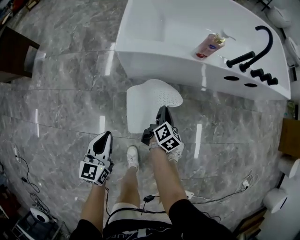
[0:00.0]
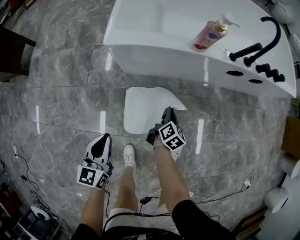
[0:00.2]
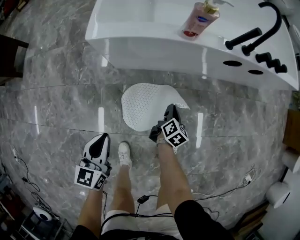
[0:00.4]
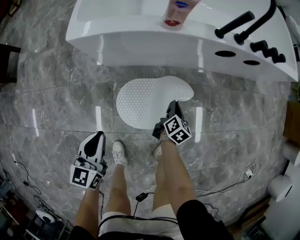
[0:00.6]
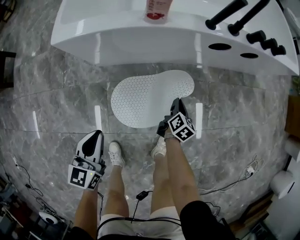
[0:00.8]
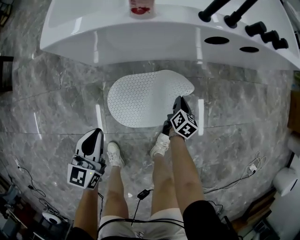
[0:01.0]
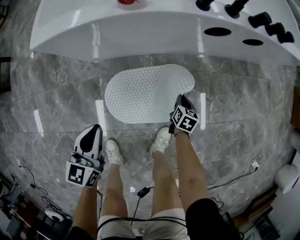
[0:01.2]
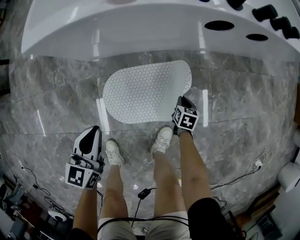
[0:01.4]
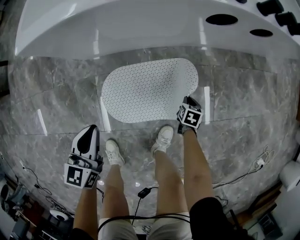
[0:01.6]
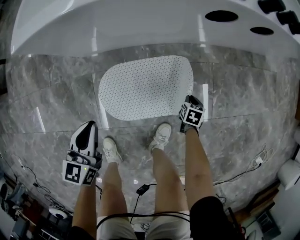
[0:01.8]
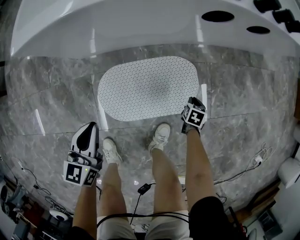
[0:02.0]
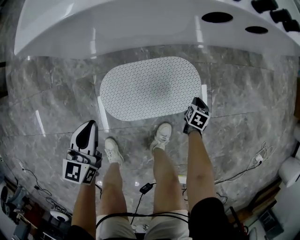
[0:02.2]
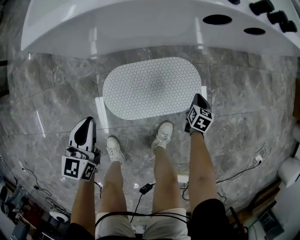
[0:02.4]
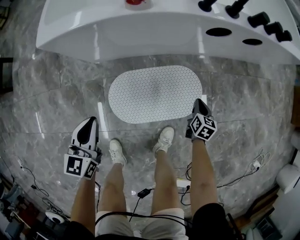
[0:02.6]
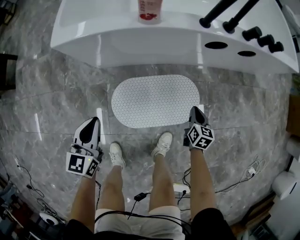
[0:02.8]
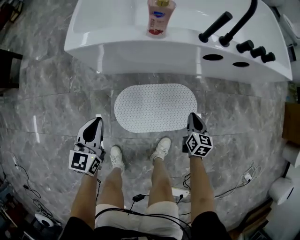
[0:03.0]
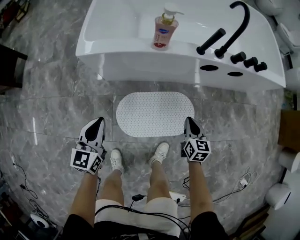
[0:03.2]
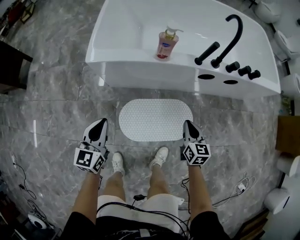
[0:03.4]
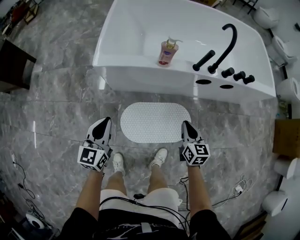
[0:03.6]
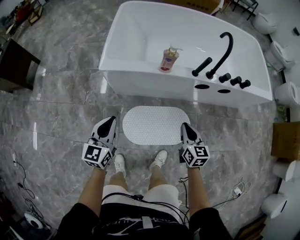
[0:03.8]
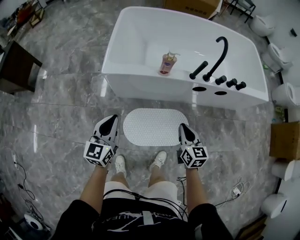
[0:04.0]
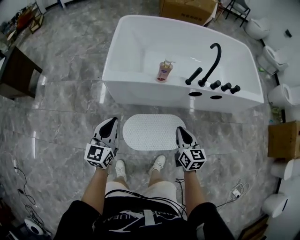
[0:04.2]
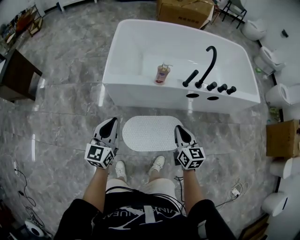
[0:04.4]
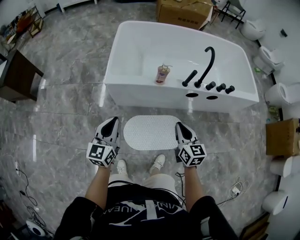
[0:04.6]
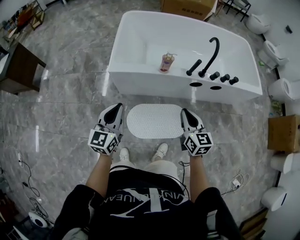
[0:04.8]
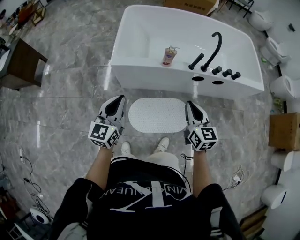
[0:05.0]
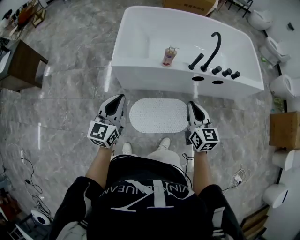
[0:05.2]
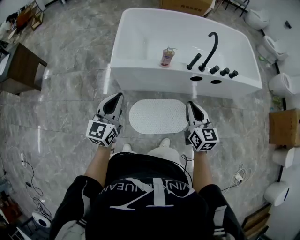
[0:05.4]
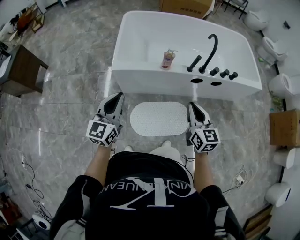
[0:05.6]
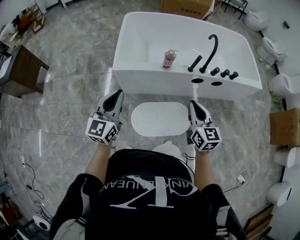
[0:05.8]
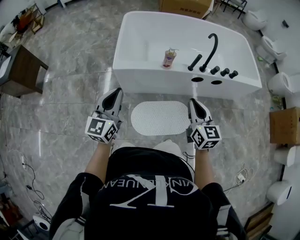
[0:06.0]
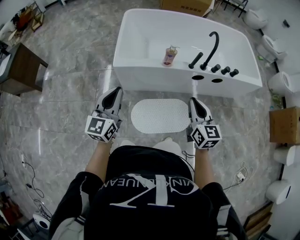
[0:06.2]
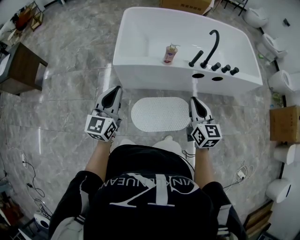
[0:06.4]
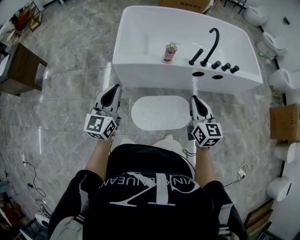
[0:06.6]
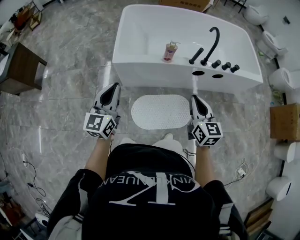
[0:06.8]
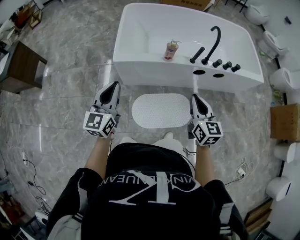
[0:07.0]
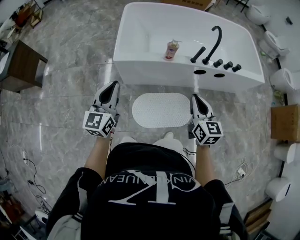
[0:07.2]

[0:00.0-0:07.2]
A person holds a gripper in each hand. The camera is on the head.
0:00.0 to 0:01.4: The left gripper moves to the right, downward and forward, approximately 30 cm. Meanwhile the right gripper travels to the right and downward by some 50 cm, and turns by approximately 40 degrees.
0:01.4 to 0:02.8: The right gripper goes approximately 15 cm upward, while the left gripper shifts some 10 cm to the left and upward.
0:02.8 to 0:04.4: Both grippers travel together upward, about 40 cm. The right gripper changes its angle by about 30 degrees.
0:04.4 to 0:05.8: The grippers both shift upward by roughly 10 cm.
0:05.8 to 0:07.2: The grippers move only a little.

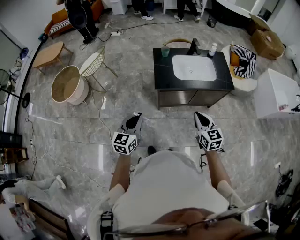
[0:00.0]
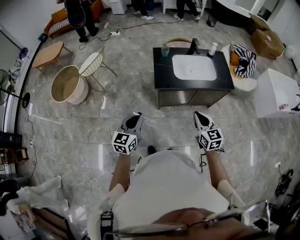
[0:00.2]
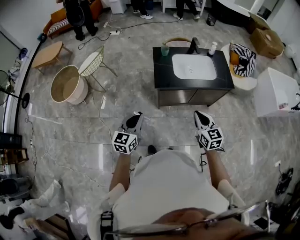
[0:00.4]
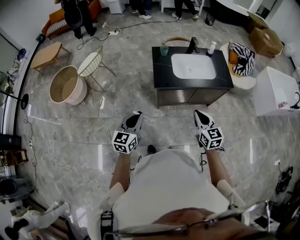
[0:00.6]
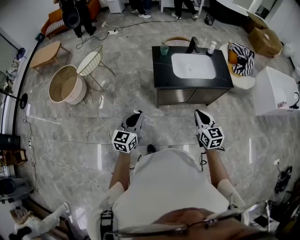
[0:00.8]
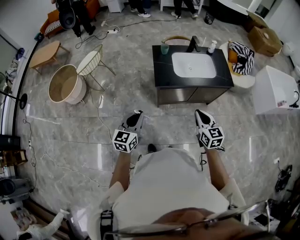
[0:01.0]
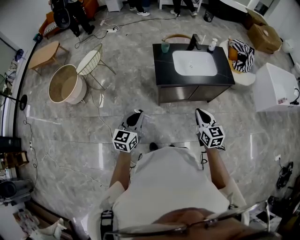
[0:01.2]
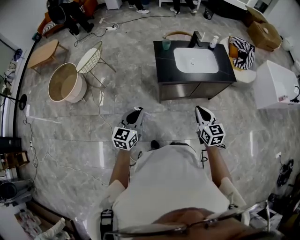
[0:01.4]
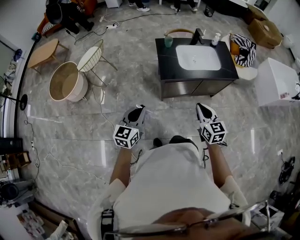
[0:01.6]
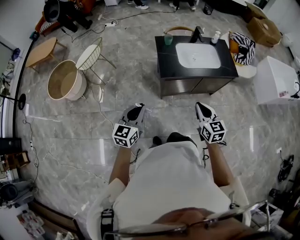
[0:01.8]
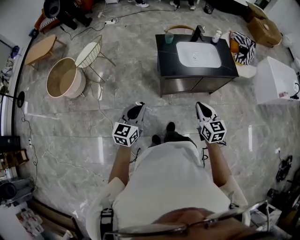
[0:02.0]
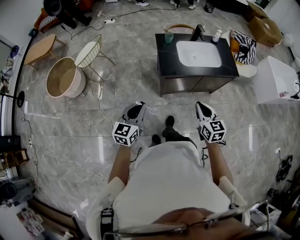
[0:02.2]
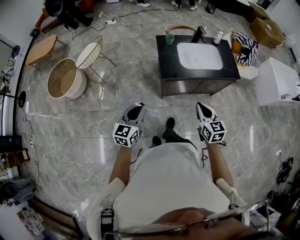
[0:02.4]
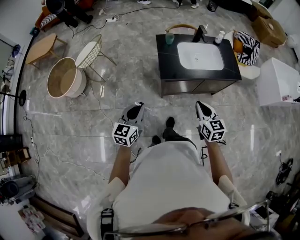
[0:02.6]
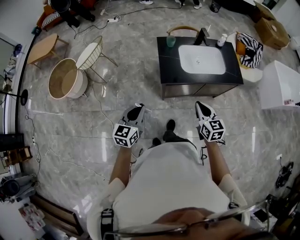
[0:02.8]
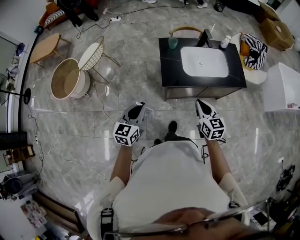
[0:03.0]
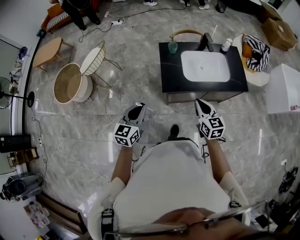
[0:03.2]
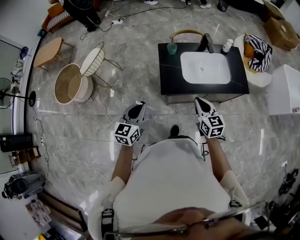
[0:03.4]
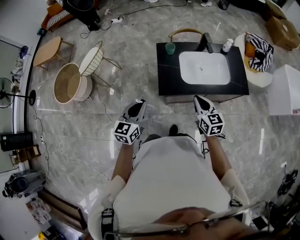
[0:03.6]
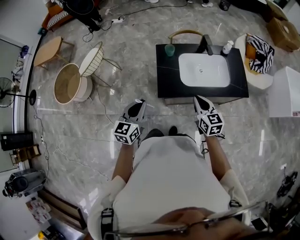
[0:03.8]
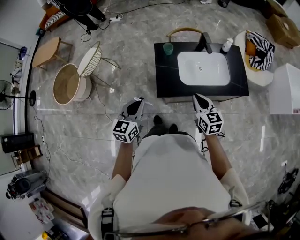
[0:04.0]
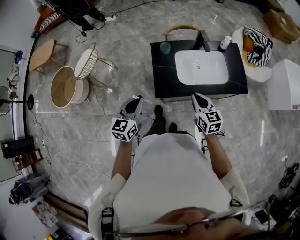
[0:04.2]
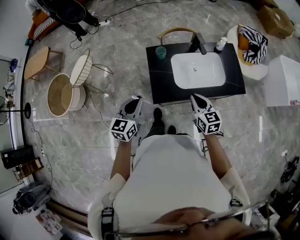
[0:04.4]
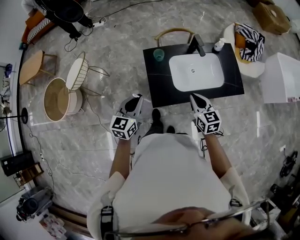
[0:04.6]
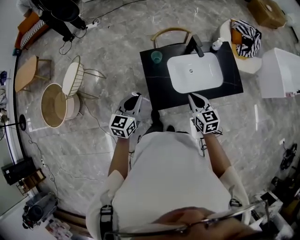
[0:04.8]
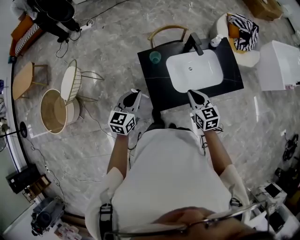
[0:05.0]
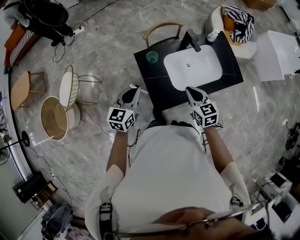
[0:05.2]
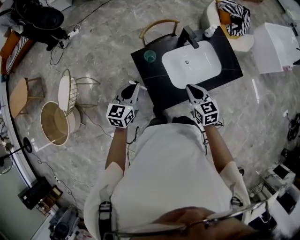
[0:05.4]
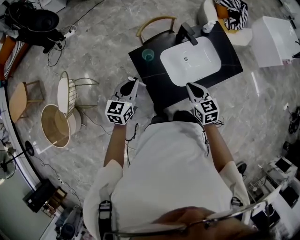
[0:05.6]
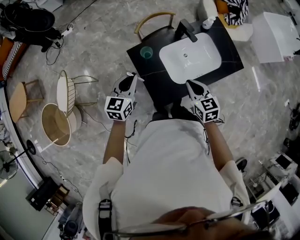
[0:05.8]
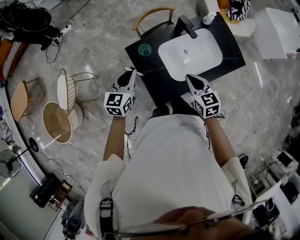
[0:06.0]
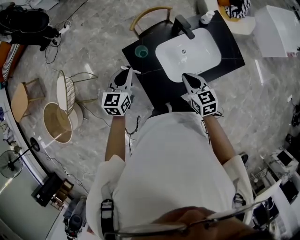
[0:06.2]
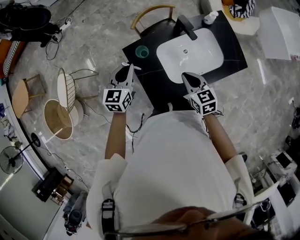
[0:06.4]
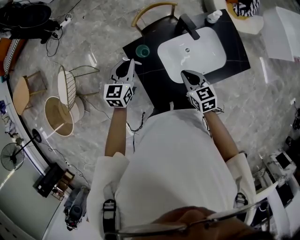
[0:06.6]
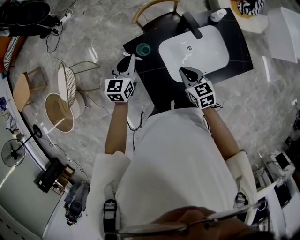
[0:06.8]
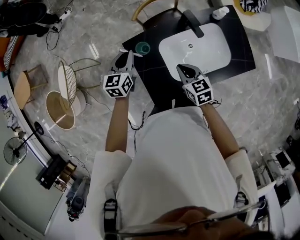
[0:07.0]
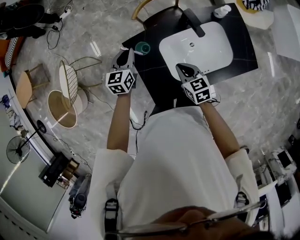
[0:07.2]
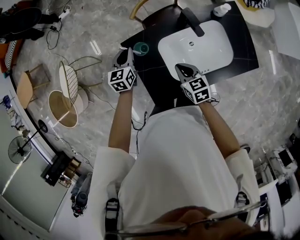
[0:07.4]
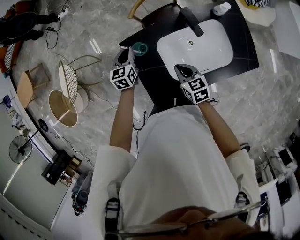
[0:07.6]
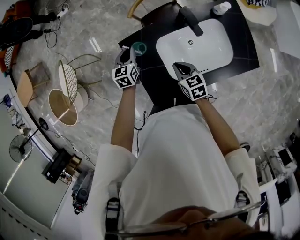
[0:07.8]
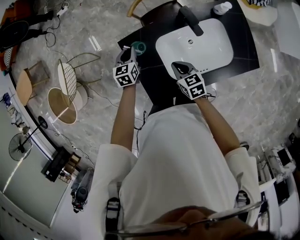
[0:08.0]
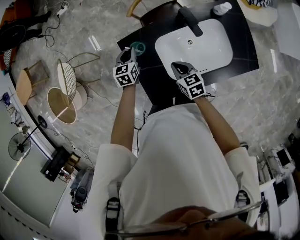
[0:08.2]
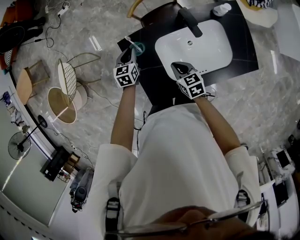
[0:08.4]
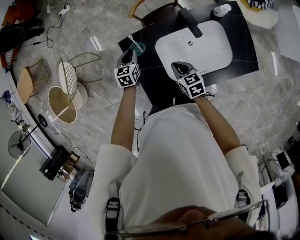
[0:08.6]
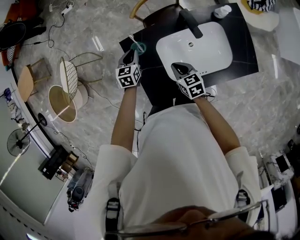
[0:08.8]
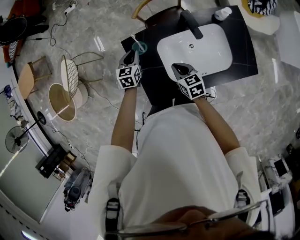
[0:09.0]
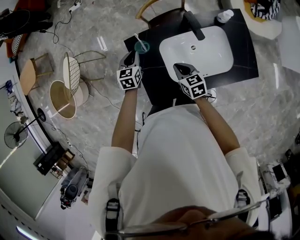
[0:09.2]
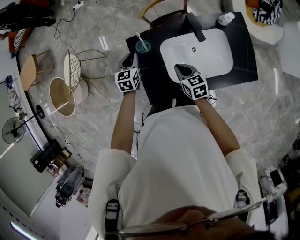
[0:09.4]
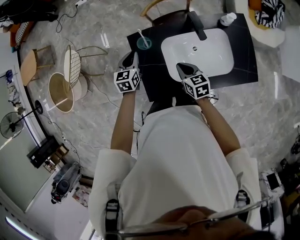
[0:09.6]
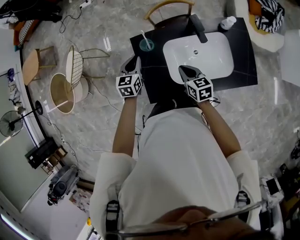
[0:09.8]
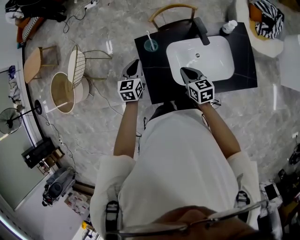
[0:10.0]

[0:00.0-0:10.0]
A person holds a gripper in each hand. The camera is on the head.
0:00.0 to 0:01.4: There are only small adjustments of the grippers.
0:01.4 to 0:02.8: The two grippers go approximately 10 cm forward.
0:02.8 to 0:04.2: The grippers both shift forward by roughly 20 cm.
0:04.2 to 0:05.8: The right gripper moves forward, some 15 cm. Meanwhile the left gripper heads forward, covering about 25 cm, and rotates some 20 degrees.
0:05.8 to 0:07.2: The two grippers go roughly 15 cm forward and downward.
0:07.2 to 0:08.6: The right gripper heads downward, covering some 5 cm. The left gripper goes about 10 cm downward.
0:08.6 to 0:10.0: The left gripper shifts some 15 cm upward and backward; the right gripper moves upward, some 5 cm.

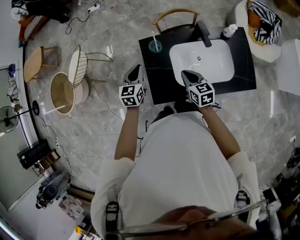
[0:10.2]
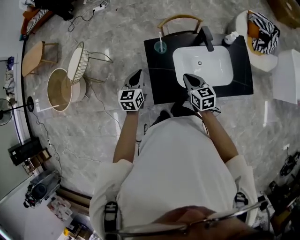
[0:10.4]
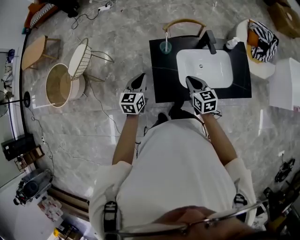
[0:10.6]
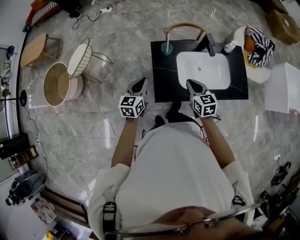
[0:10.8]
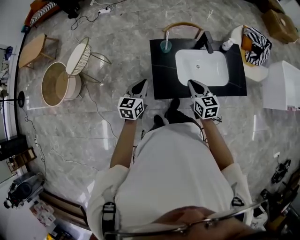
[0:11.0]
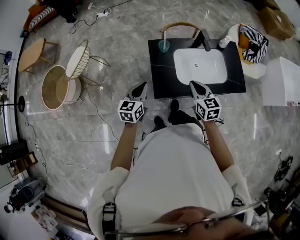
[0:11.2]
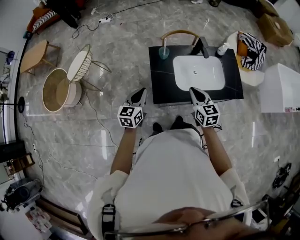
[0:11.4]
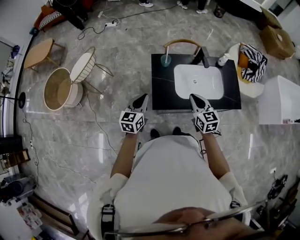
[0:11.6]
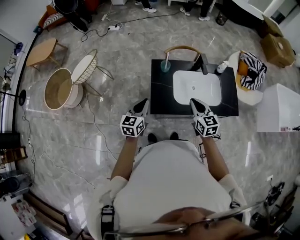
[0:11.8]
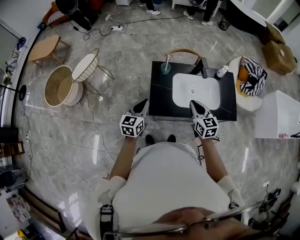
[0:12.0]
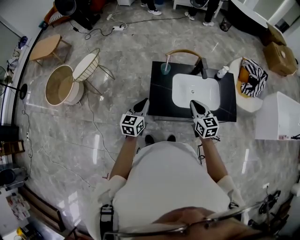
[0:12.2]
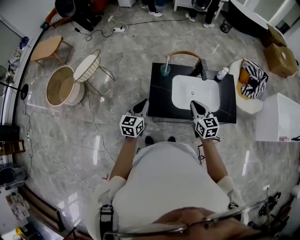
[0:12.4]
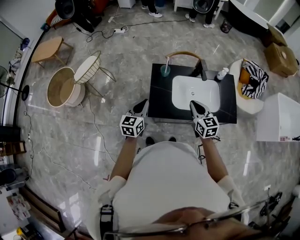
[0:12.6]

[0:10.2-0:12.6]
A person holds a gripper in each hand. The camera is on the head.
0:10.2 to 0:11.4: The right gripper shifts about 15 cm backward and upward; the left gripper travels backward by about 20 cm.
0:11.4 to 0:12.6: The right gripper ends up some 5 cm from where it was. Meanwhile the left gripper changes place by approximately 5 cm.

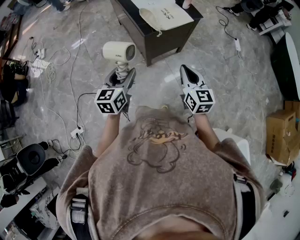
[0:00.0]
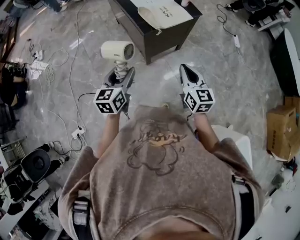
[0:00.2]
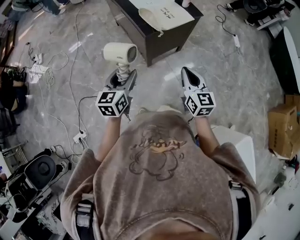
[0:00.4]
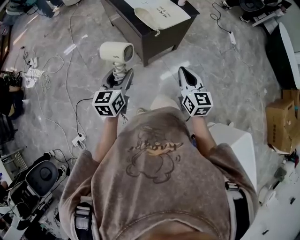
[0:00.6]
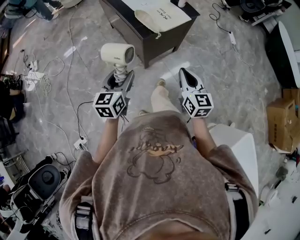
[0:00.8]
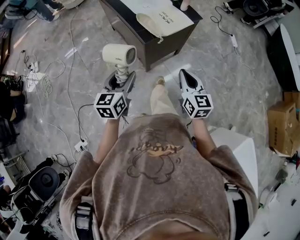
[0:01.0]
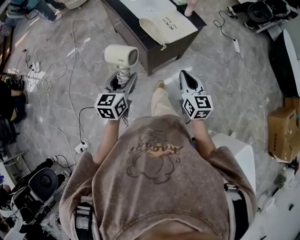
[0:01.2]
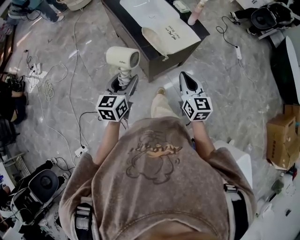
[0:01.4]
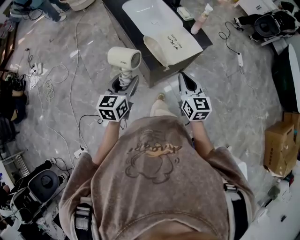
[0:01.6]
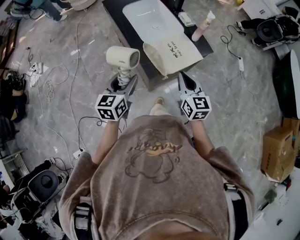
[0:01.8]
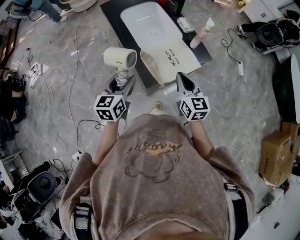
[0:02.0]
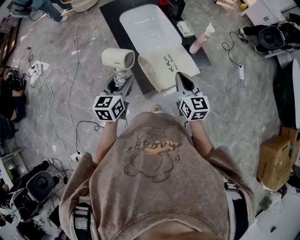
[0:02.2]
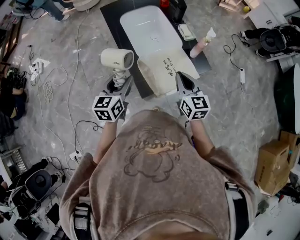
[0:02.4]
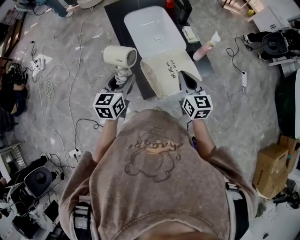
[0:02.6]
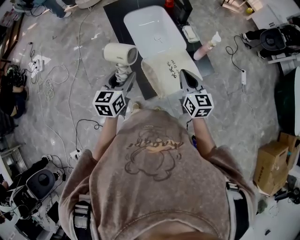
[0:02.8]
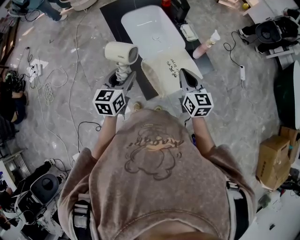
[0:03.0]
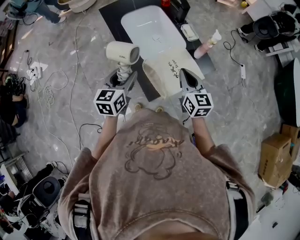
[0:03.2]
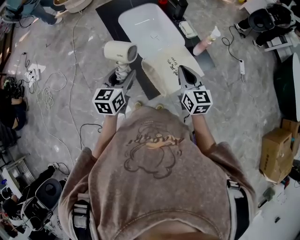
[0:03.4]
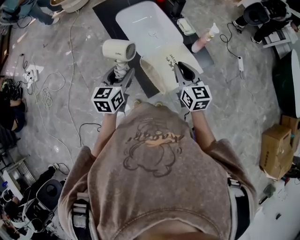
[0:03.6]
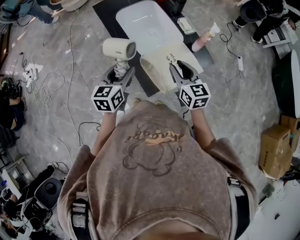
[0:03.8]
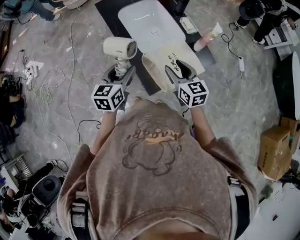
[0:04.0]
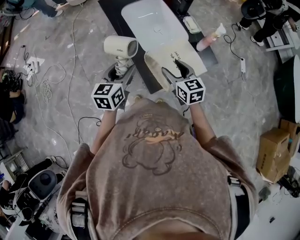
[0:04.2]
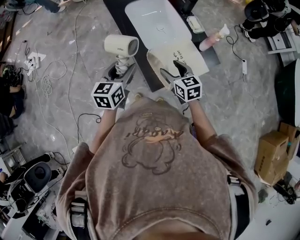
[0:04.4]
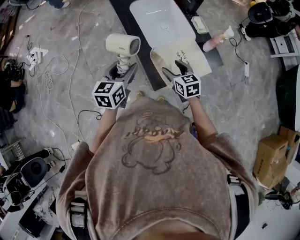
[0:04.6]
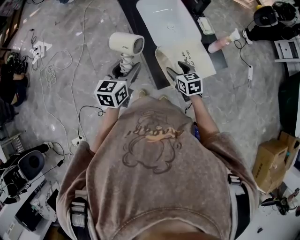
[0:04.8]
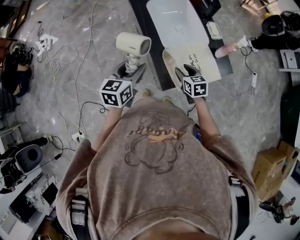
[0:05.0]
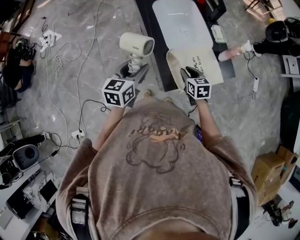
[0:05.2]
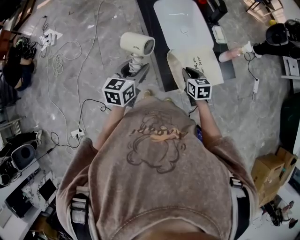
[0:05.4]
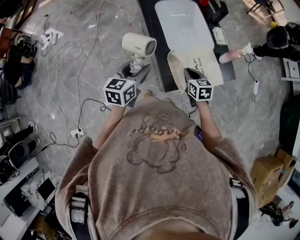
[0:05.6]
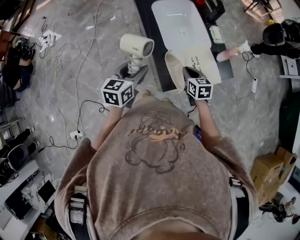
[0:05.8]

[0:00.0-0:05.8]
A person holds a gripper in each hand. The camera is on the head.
0:00.0 to 0:01.4: Both grippers move forward, approximately 20 cm.
0:01.4 to 0:02.8: Both grippers move forward, some 25 cm.
0:02.8 to 0:04.4: The right gripper is displaced to the left and downward by approximately 10 cm, and opens.
0:04.4 to 0:05.8: The right gripper ends up about 5 cm from where it was, and closes.
